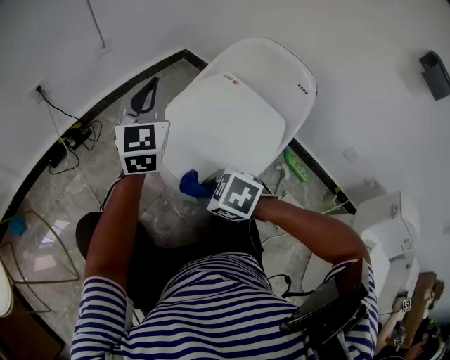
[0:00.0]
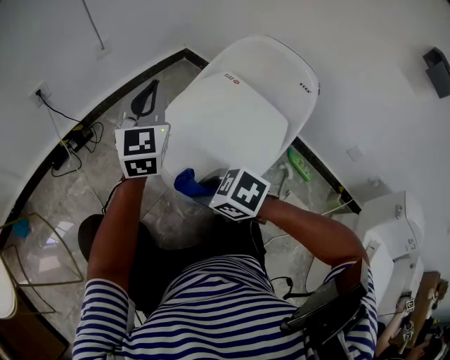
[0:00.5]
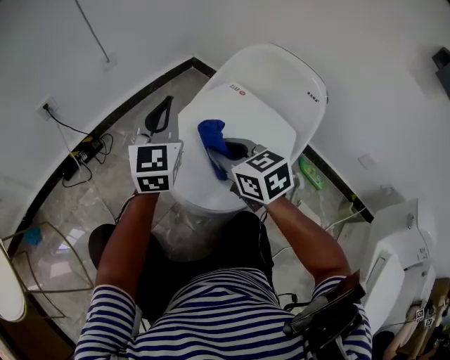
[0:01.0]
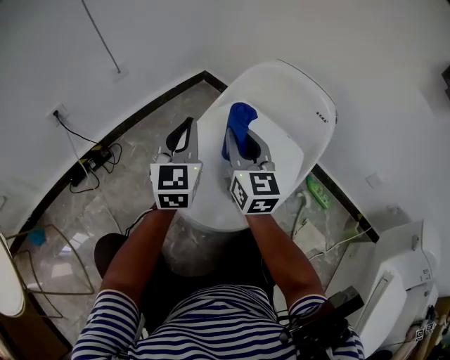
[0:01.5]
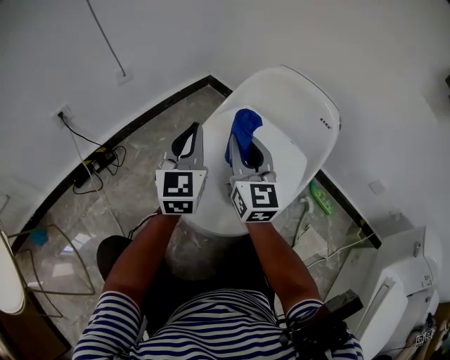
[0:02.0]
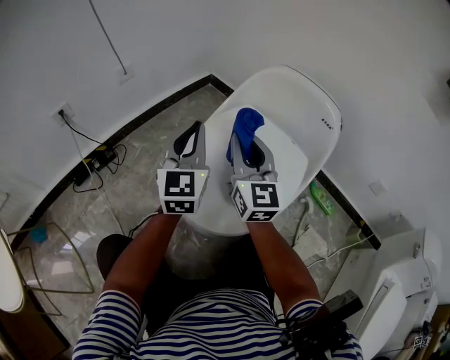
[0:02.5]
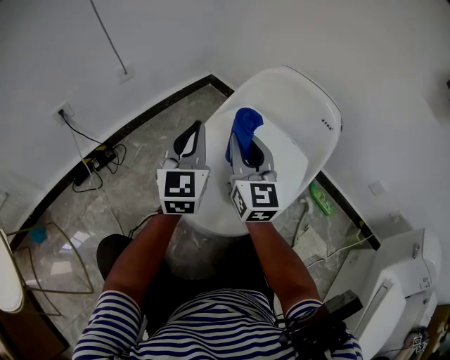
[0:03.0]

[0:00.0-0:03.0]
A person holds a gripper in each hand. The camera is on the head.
0:00.0 to 0:01.5: The right gripper shifts by approximately 30 cm, and points its fingers about 70 degrees further upward, while the left gripper shifts by roughly 10 cm.
0:01.5 to 0:03.0: There are only small adjustments of the grippers.

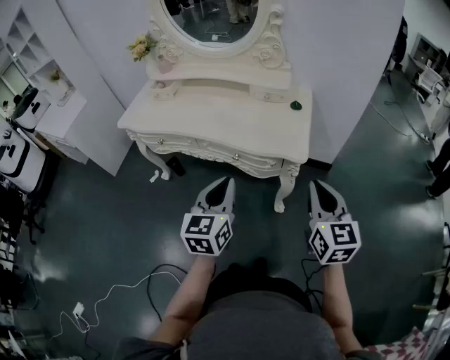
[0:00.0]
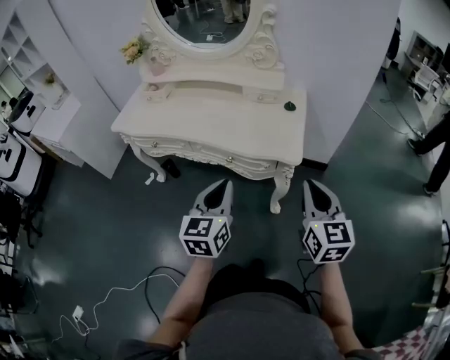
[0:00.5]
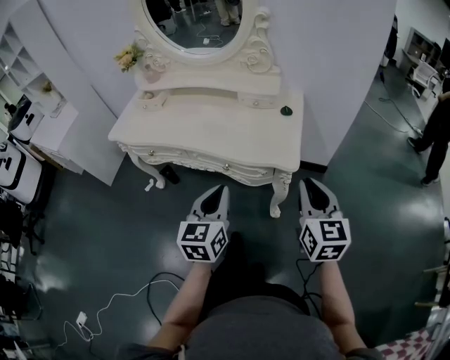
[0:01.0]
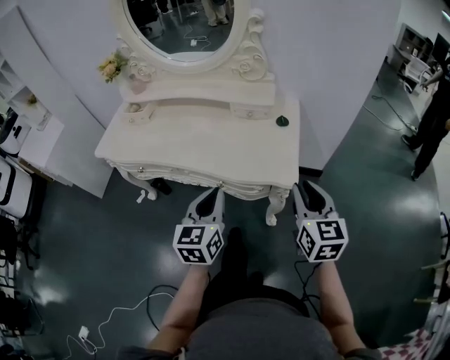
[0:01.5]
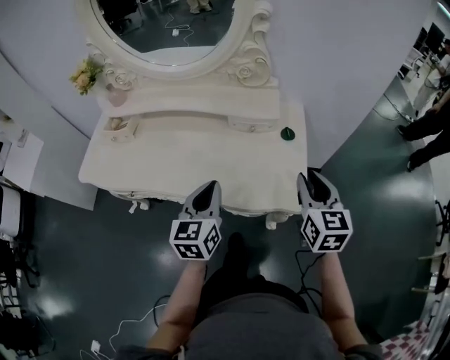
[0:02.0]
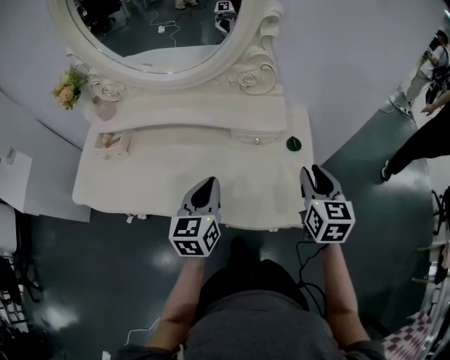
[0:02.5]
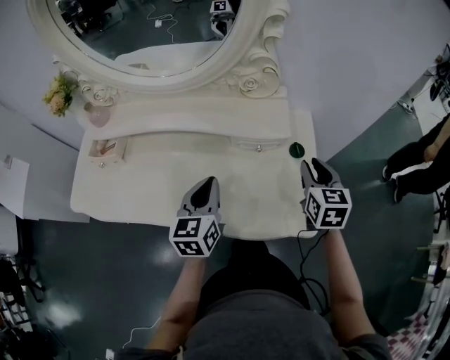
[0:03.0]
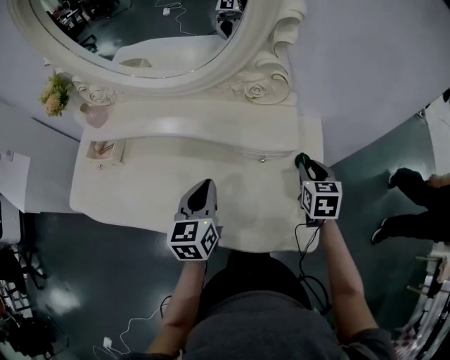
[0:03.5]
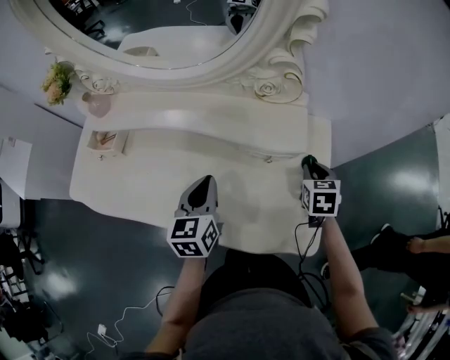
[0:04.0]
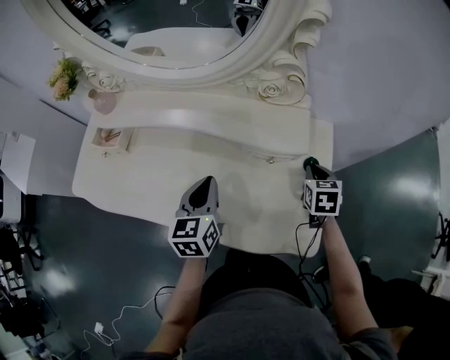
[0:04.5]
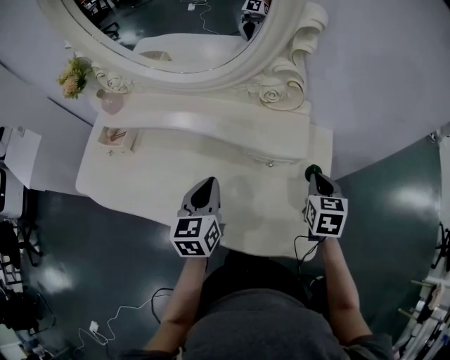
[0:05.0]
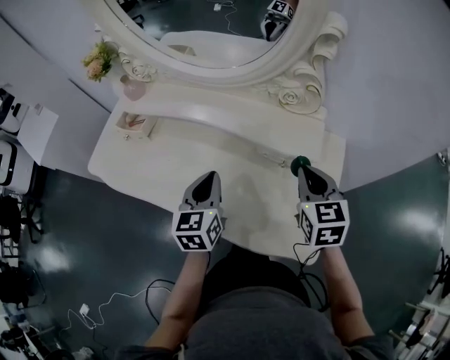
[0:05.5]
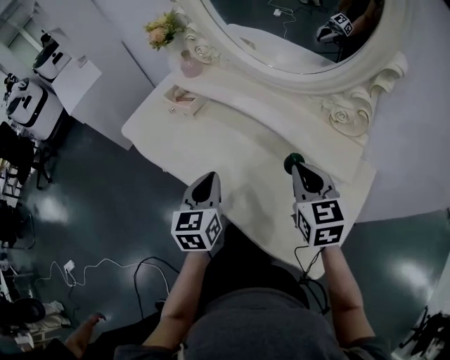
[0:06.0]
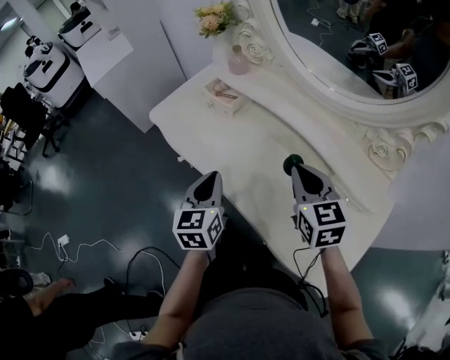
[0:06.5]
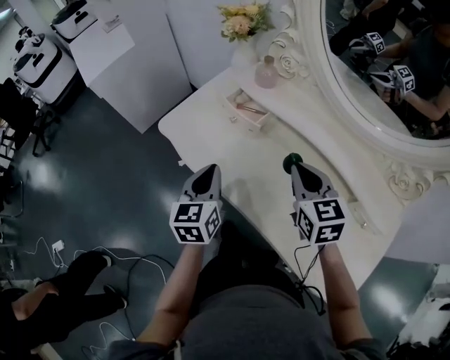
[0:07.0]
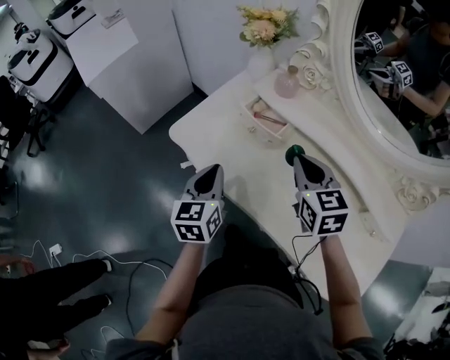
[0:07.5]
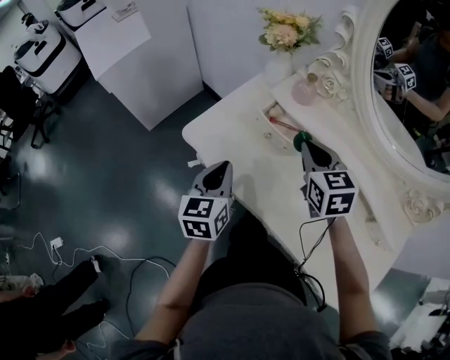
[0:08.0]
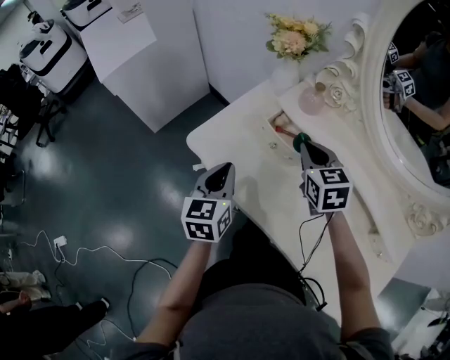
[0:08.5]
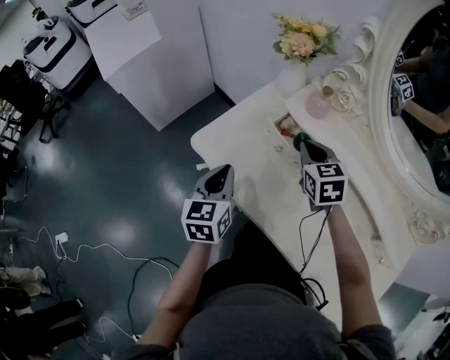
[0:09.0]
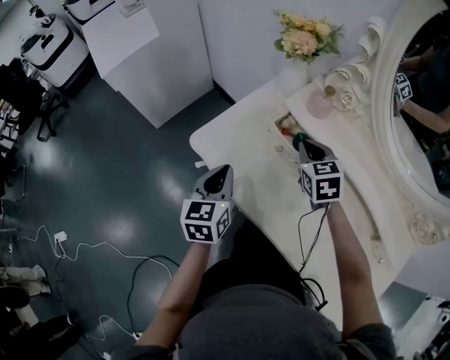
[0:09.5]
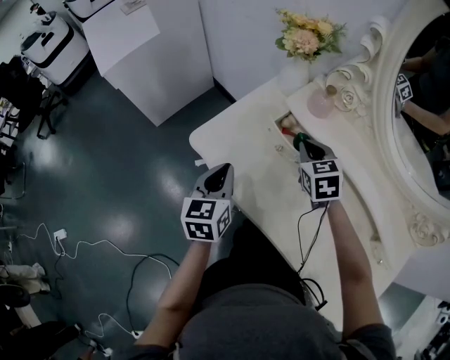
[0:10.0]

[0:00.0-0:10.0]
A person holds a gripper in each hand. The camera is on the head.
0:00.0 to 0:02.0: Both grippers travel together forward, about 25 cm. The right gripper opens its fingers.
0:02.0 to 0:04.0: The right gripper goes roughly 25 cm forward and downward, and turns by roughly 30 degrees. The left gripper heads forward, covering some 15 cm.
0:04.0 to 0:06.0: The right gripper ends up about 25 cm from where it was, and swivels roughly 50 degrees; the left gripper shifts by approximately 15 cm, and rotates roughly 30 degrees.
0:06.0 to 0:08.0: Both grippers travel together to the left and forward, approximately 35 cm.
0:08.0 to 0:10.0: The right gripper goes some 10 cm downward and forward.

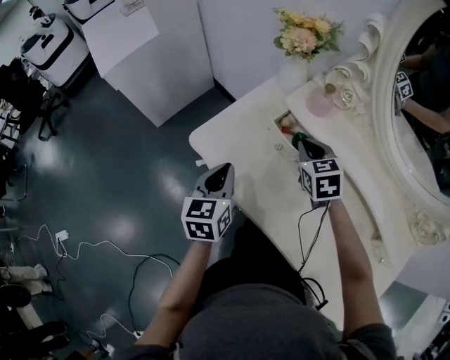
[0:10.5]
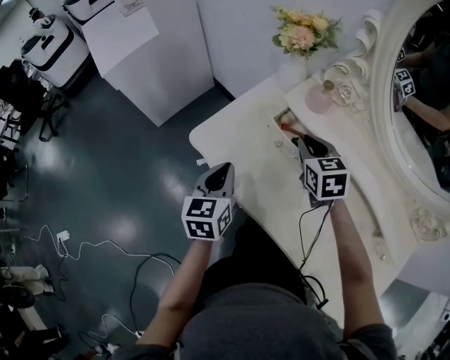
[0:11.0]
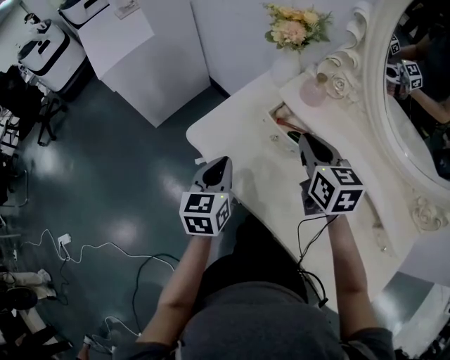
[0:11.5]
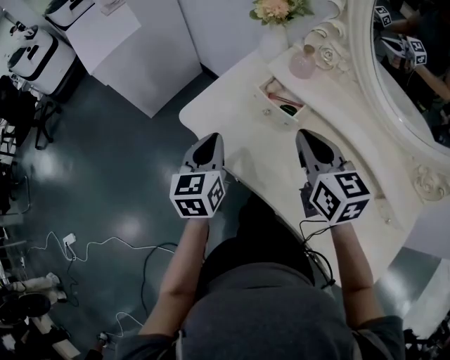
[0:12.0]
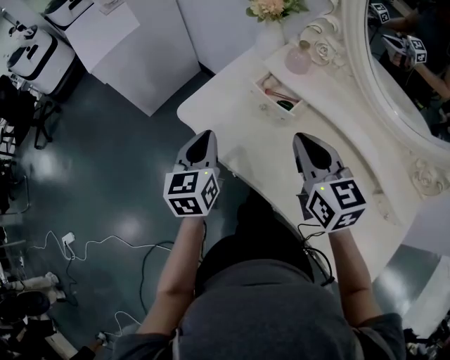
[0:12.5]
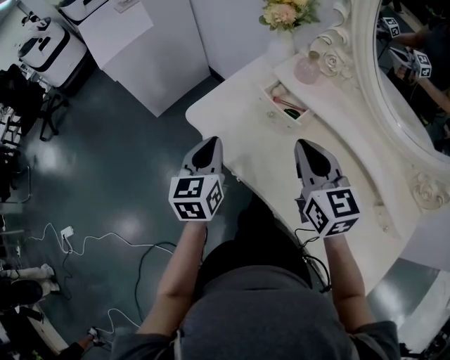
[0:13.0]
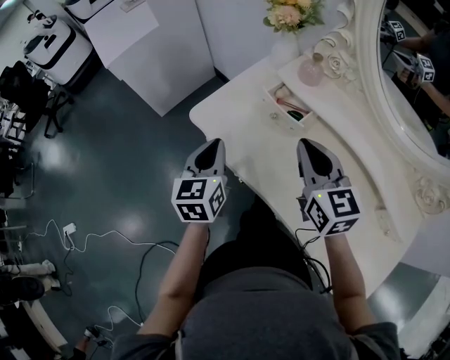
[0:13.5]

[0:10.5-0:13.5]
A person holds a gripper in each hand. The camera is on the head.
0:10.5 to 0:12.0: The right gripper travels backward and upward by about 15 cm, and rotates about 30 degrees.
0:12.0 to 0:13.5: The grippers move only a little.

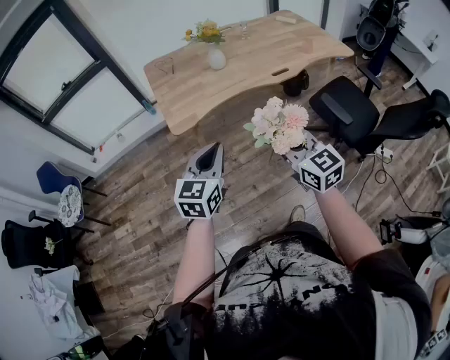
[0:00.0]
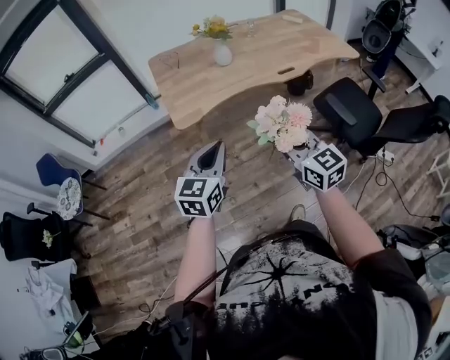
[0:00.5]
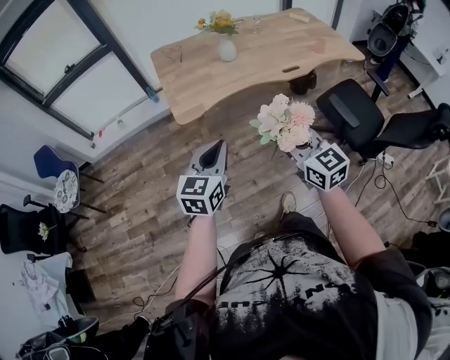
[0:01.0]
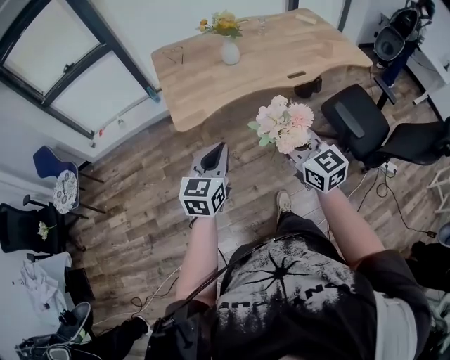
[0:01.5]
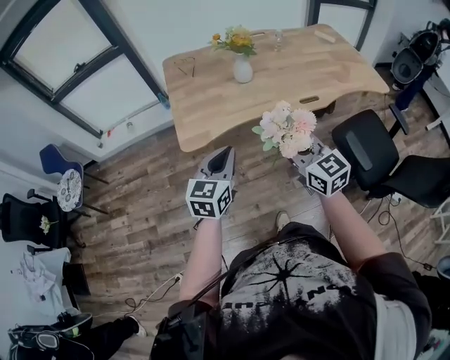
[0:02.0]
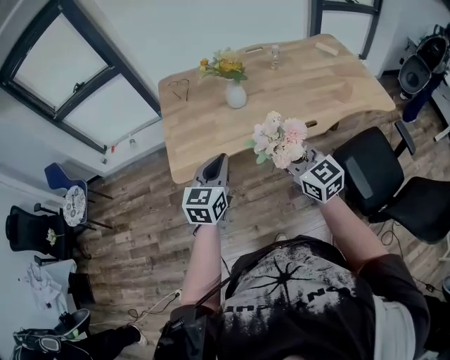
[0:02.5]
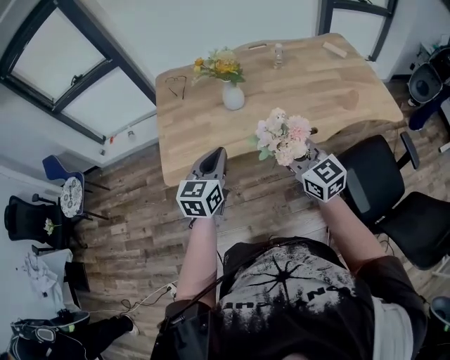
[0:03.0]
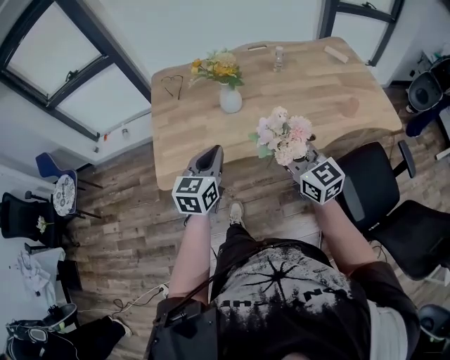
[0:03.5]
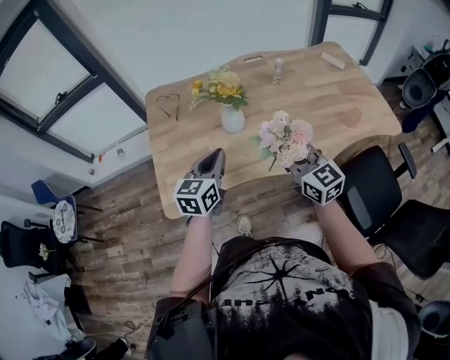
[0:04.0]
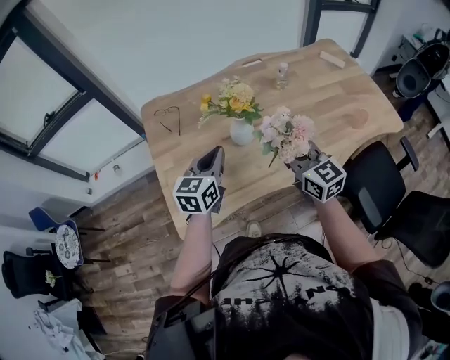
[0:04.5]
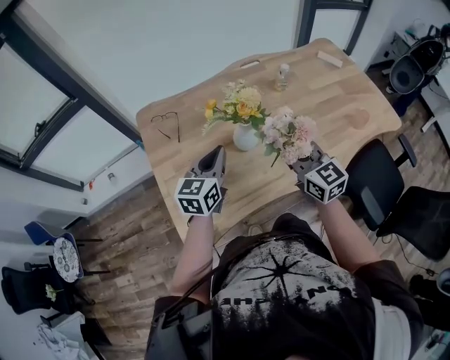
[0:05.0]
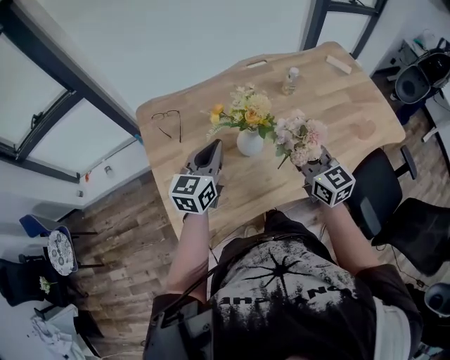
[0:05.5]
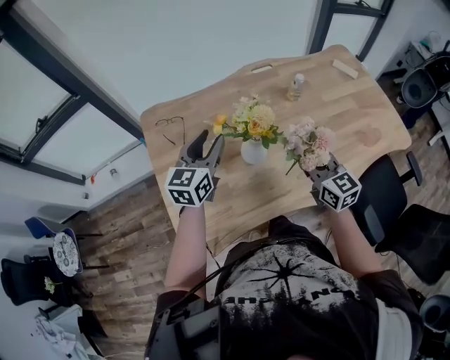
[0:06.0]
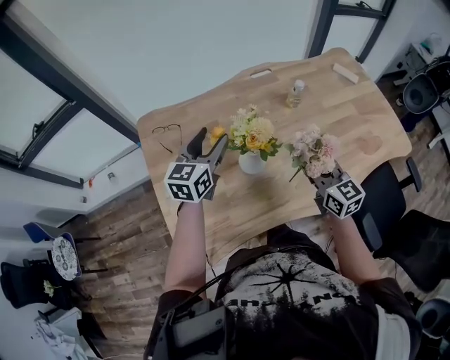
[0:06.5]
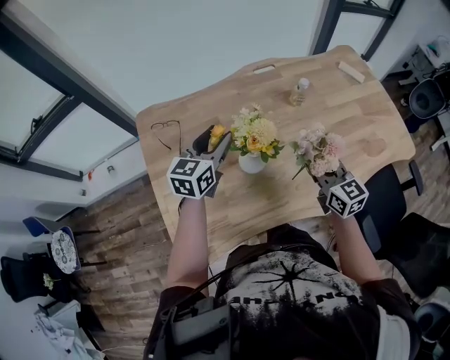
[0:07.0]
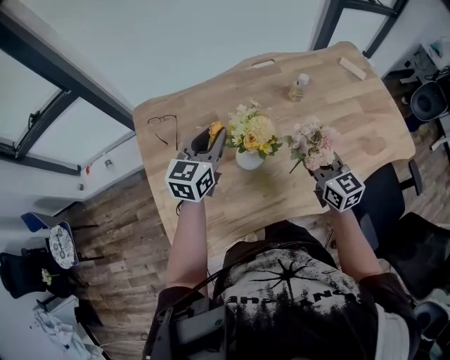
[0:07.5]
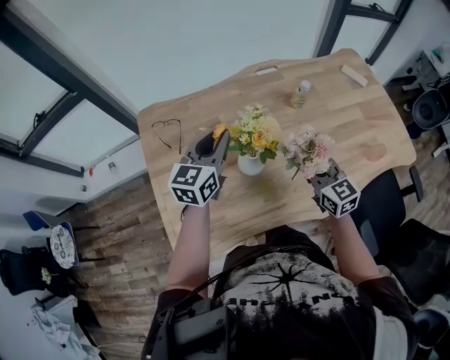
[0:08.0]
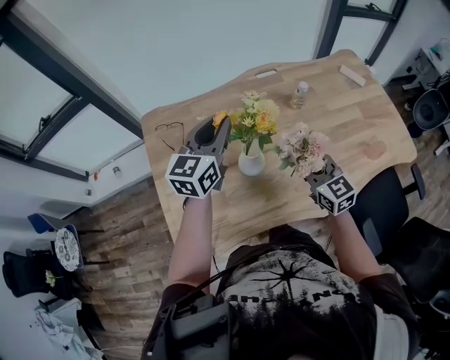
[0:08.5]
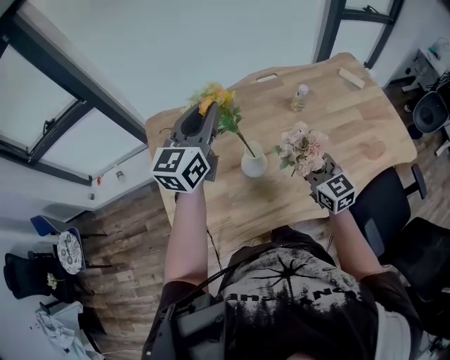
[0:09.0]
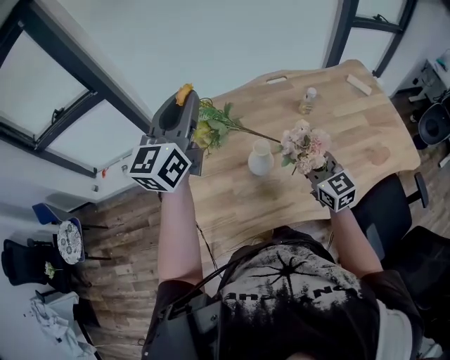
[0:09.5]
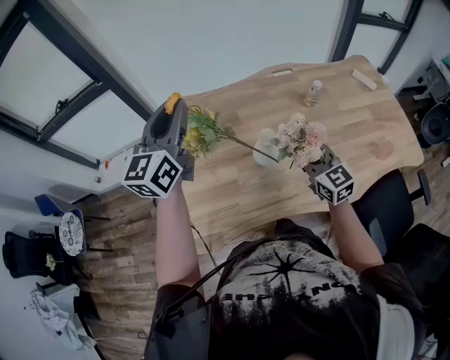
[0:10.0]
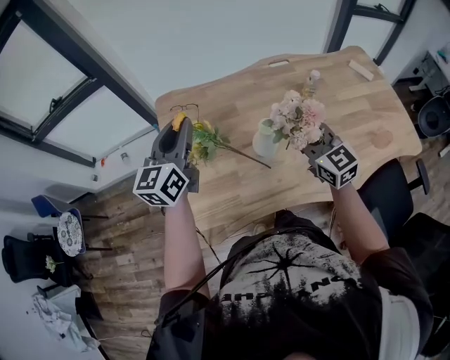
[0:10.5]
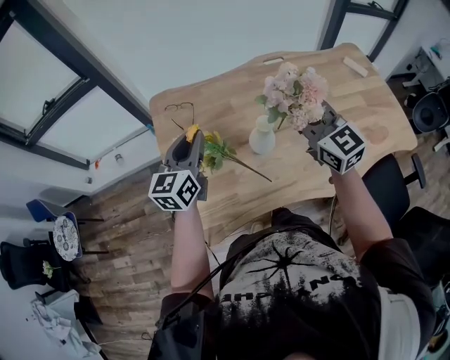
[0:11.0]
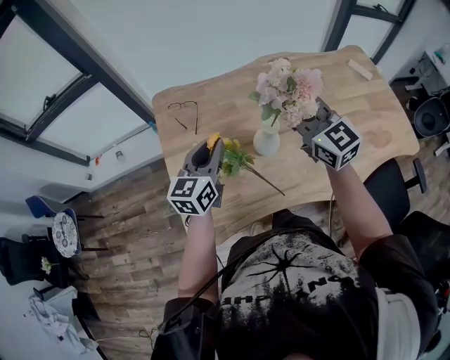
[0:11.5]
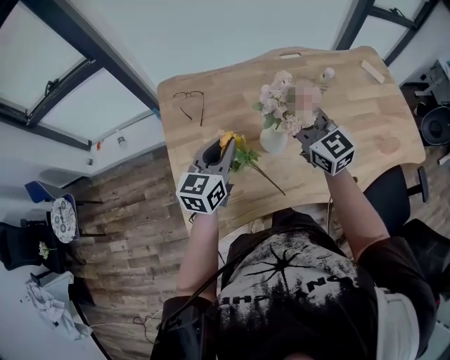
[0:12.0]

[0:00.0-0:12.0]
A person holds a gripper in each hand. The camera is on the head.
0:00.0 to 0:02.0: The grippers both shift forward by approximately 15 cm.
0:02.0 to 0:04.0: The right gripper goes about 30 cm forward and to the right, while the left gripper moves forward, about 30 cm.
0:04.0 to 0:06.0: The left gripper moves forward and to the left, approximately 25 cm, and opens, while the right gripper is displaced forward by some 15 cm.
0:06.0 to 0:08.0: The right gripper changes place by about 5 cm, while the left gripper changes place by approximately 5 cm.
0:08.0 to 0:10.0: The left gripper goes roughly 20 cm upward and to the left, and changes its angle by some 20 degrees; the right gripper goes roughly 5 cm to the left.
0:10.0 to 0:12.0: The right gripper is displaced to the left, forward and upward by about 10 cm; the left gripper is displaced downward by about 20 cm, and turns by approximately 20 degrees.
